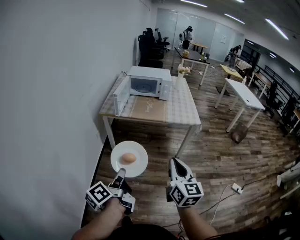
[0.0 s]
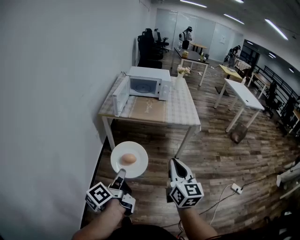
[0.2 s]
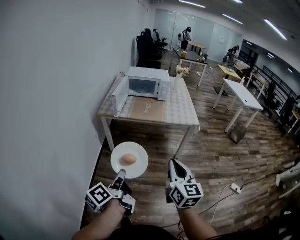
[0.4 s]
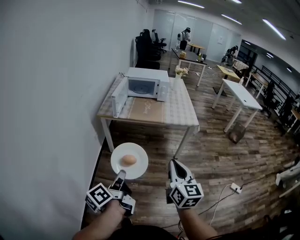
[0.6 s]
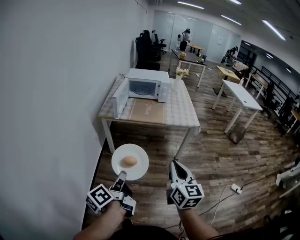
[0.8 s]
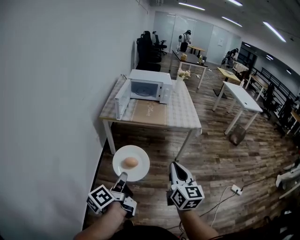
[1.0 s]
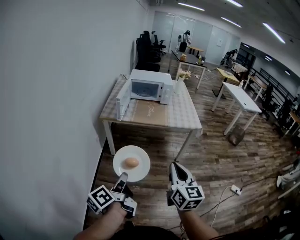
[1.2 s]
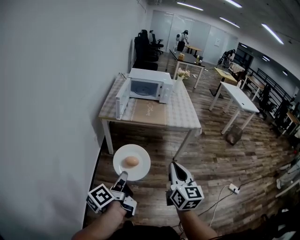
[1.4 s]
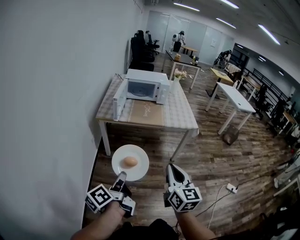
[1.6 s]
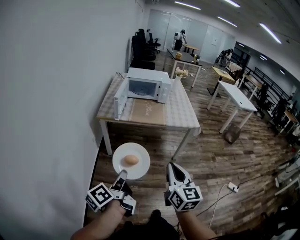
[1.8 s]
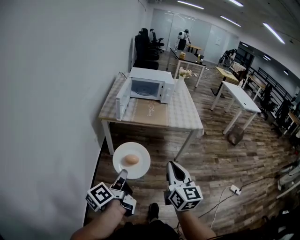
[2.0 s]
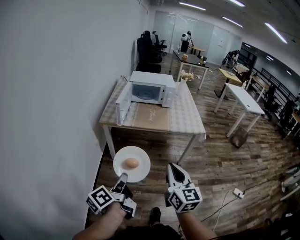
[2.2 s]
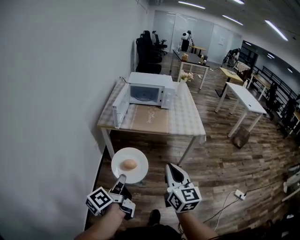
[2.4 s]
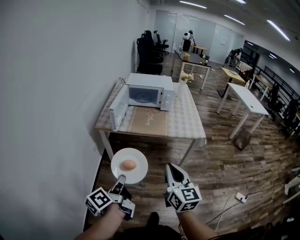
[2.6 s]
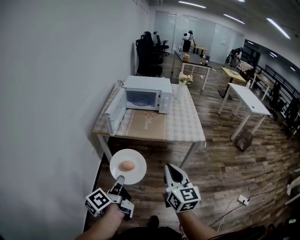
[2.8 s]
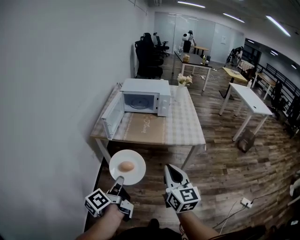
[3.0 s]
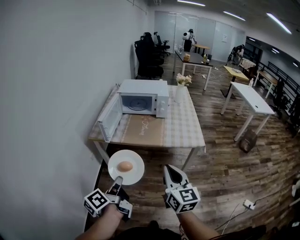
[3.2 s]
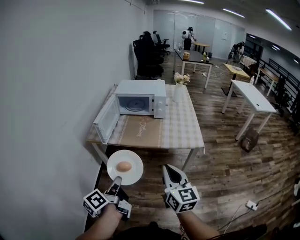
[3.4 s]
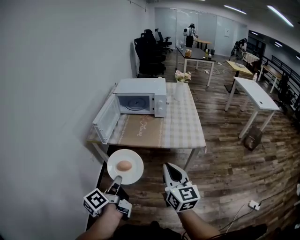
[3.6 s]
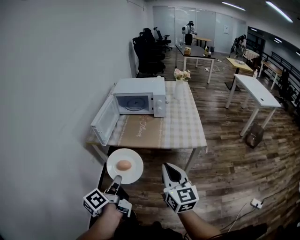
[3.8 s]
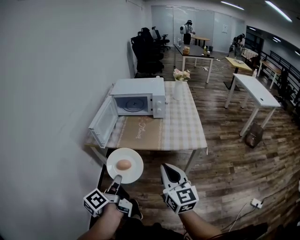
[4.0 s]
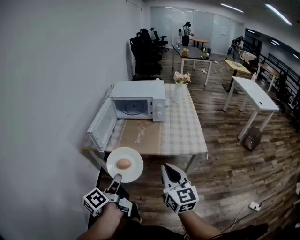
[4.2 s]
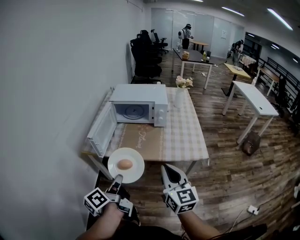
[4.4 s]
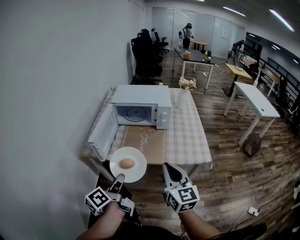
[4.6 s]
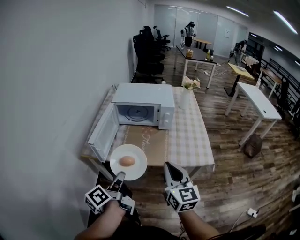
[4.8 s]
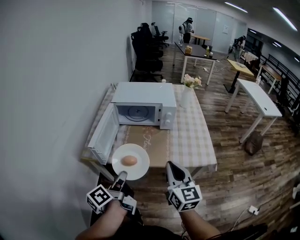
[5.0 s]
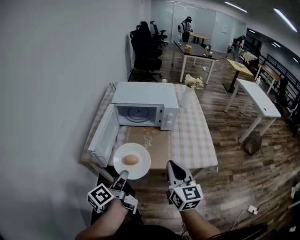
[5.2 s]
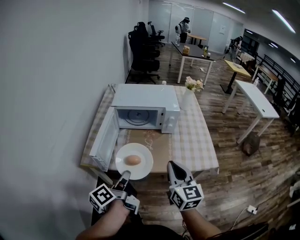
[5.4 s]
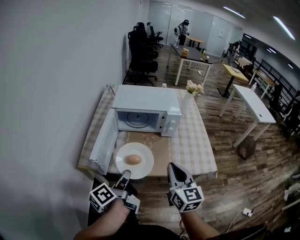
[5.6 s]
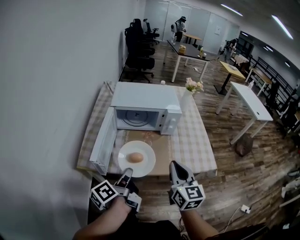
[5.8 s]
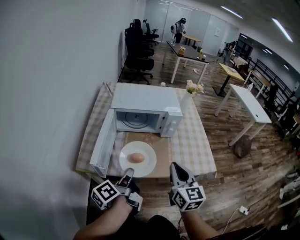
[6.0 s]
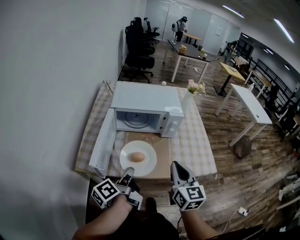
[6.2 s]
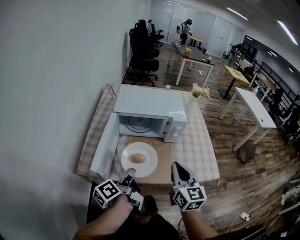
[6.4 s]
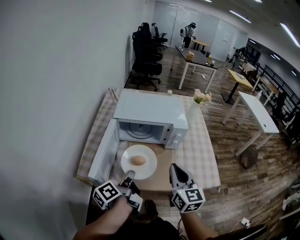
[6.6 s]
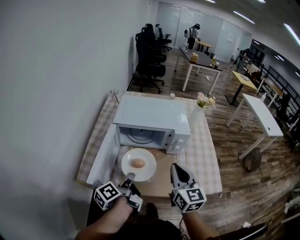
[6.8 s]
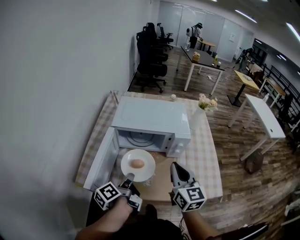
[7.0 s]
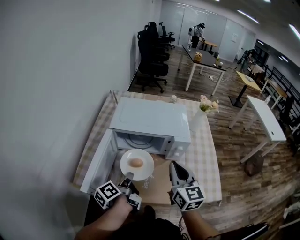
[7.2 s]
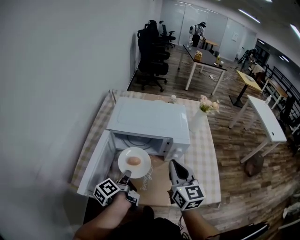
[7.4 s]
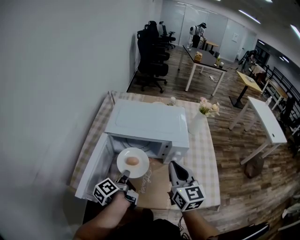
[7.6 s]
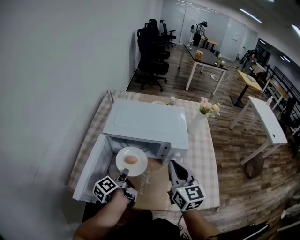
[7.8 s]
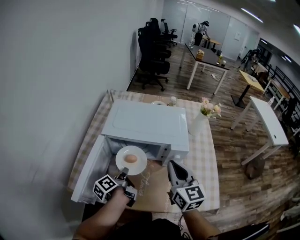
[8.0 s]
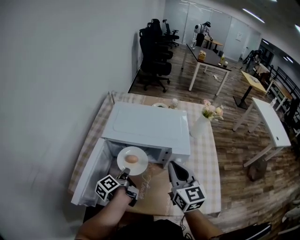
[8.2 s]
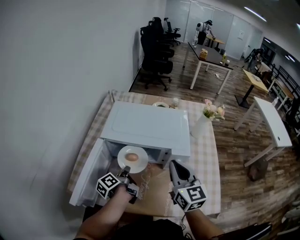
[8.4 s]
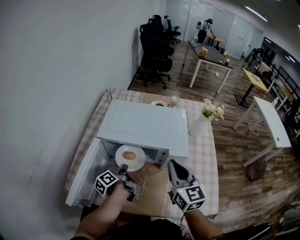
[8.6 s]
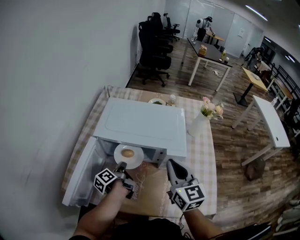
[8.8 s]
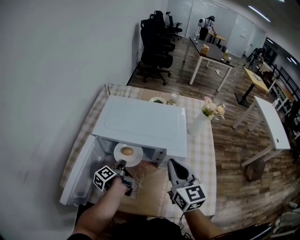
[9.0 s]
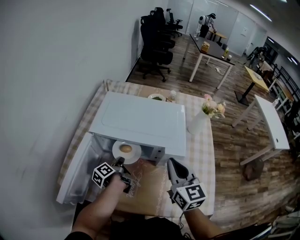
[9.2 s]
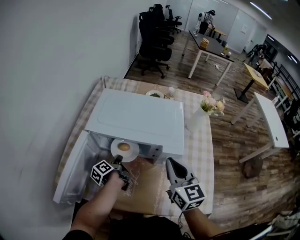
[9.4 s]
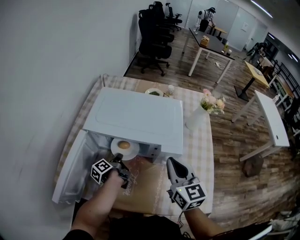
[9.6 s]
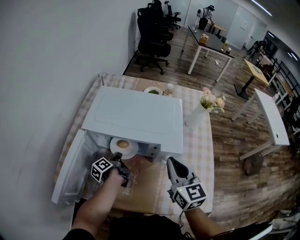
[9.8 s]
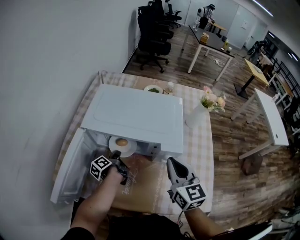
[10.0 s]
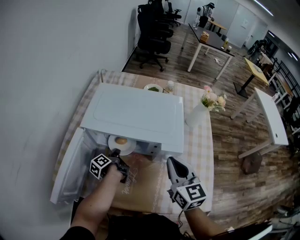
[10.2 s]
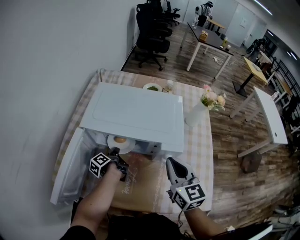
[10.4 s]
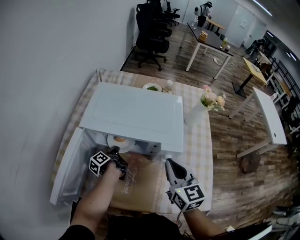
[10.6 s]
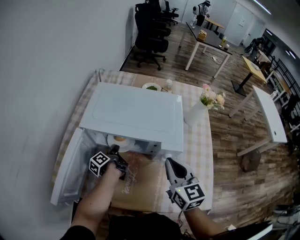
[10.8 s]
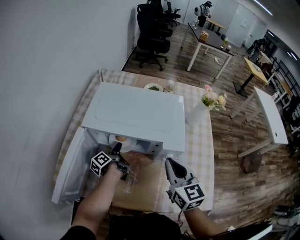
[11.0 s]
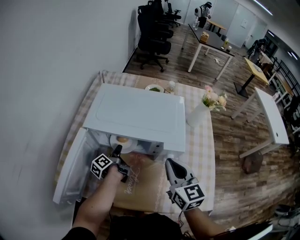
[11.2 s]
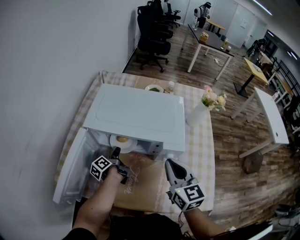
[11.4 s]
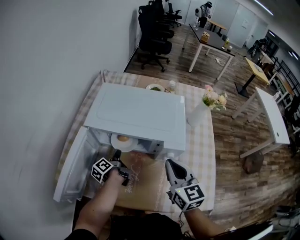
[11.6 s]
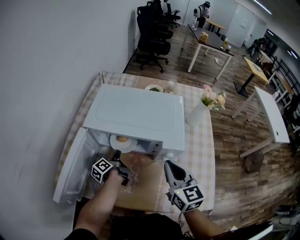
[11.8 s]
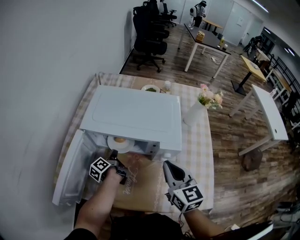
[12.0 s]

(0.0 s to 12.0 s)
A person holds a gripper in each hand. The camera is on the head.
0.0 s - 1.6 s: Both grippers travel together to the left, roughly 5 cm.
1.6 s - 3.0 s: Both grippers move forward and to the right, approximately 20 cm.
3.0 s - 4.4 s: The two grippers go some 15 cm forward.
4.4 s - 6.0 s: The left gripper goes some 20 cm forward. The right gripper travels forward and to the left by about 20 cm.
6.0 s - 7.6 s: The right gripper is displaced forward by approximately 20 cm. Meanwhile the left gripper travels forward and downward by roughly 20 cm.
7.6 s - 9.0 s: The right gripper shifts approximately 5 cm forward; the left gripper goes some 15 cm forward and downward.
9.0 s - 10.4 s: The left gripper is displaced downward by about 5 cm.
10.4 s - 12.0 s: The left gripper opens and closes again.

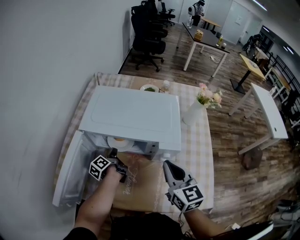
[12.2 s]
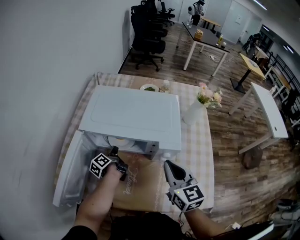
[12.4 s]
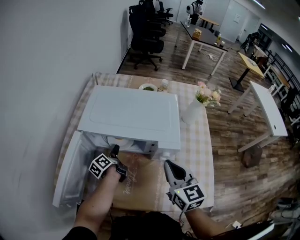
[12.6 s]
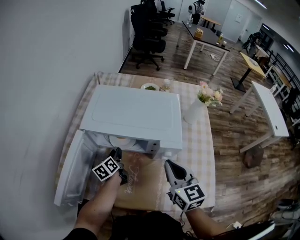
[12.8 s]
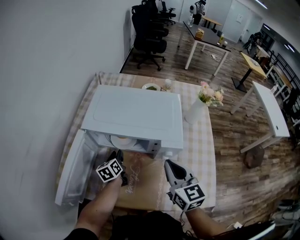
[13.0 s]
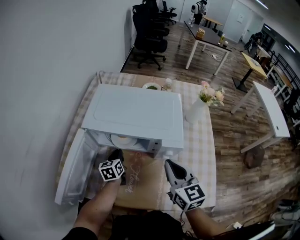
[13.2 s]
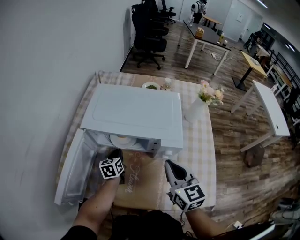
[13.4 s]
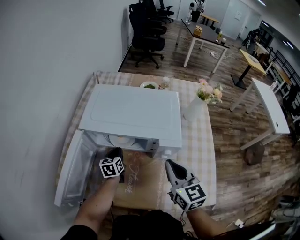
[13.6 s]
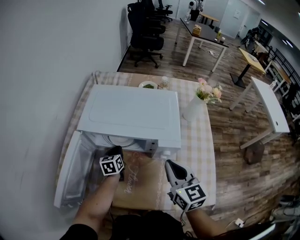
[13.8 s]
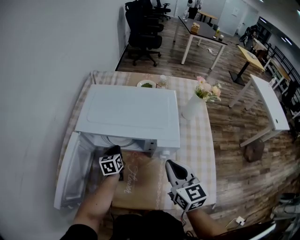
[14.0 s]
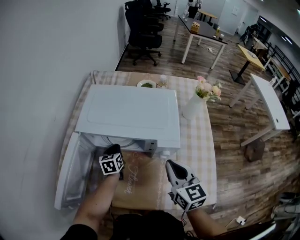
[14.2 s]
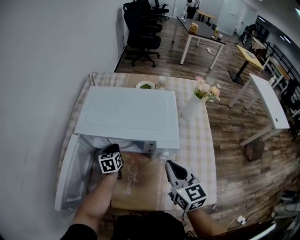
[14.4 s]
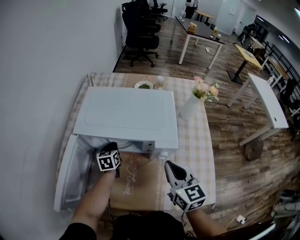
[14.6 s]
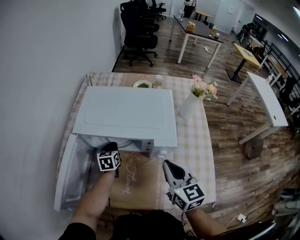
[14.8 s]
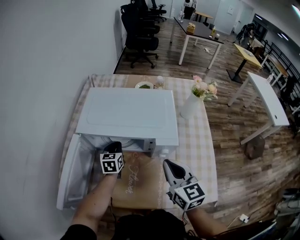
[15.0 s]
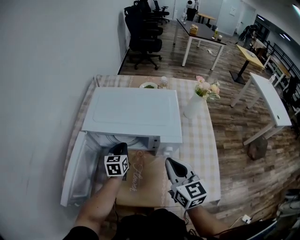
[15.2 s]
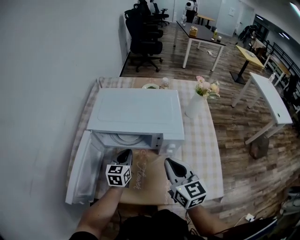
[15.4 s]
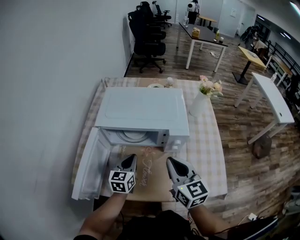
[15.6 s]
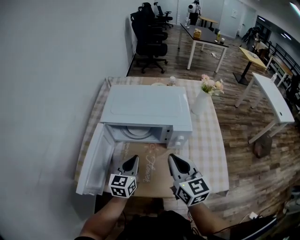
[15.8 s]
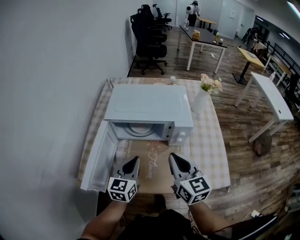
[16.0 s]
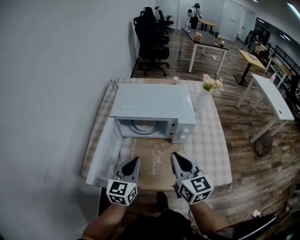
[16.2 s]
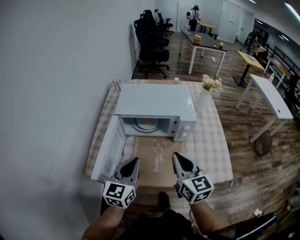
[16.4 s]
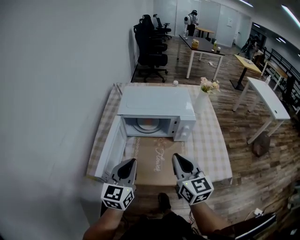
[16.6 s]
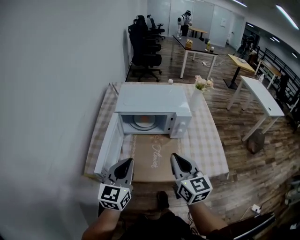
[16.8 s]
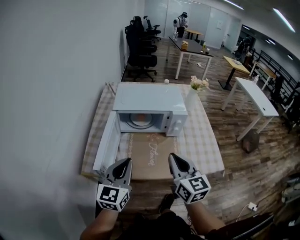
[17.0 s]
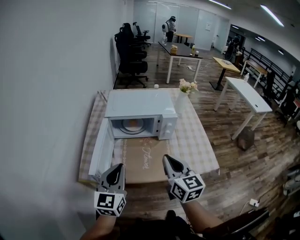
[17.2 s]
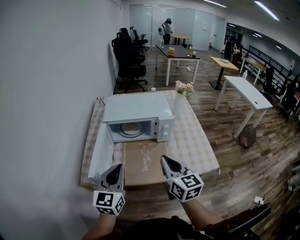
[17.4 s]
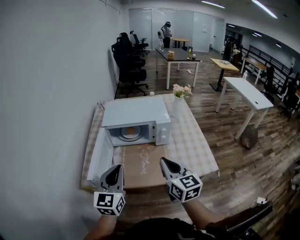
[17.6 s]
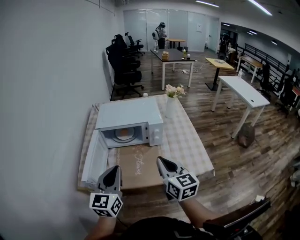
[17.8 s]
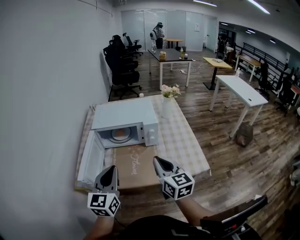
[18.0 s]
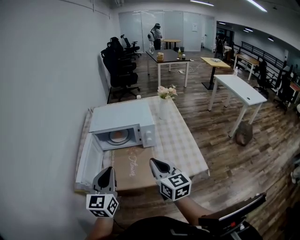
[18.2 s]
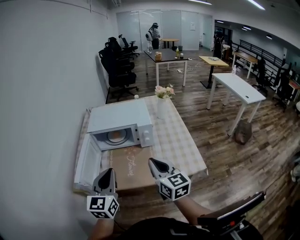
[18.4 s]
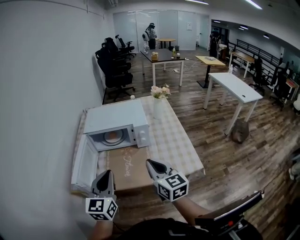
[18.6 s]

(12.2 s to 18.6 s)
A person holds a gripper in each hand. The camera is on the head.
12.2 s - 13.8 s: The left gripper rolls clockwise, seen from behind, by about 60 degrees, and opens, then closes again.
13.8 s - 15.4 s: The left gripper moves upward and backward, some 10 cm, and changes its angle by approximately 20 degrees.
15.4 s - 17.0 s: The right gripper moves backward and to the left, approximately 20 cm. Meanwhile the left gripper heads backward and upward, covering roughly 35 cm, and turns by roughly 20 degrees.
17.0 s - 18.6 s: Both grippers travel together to the right, about 10 cm.

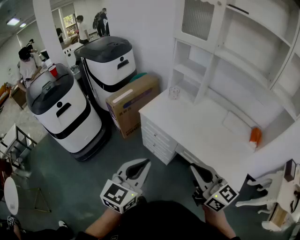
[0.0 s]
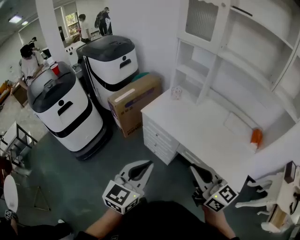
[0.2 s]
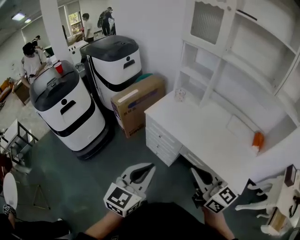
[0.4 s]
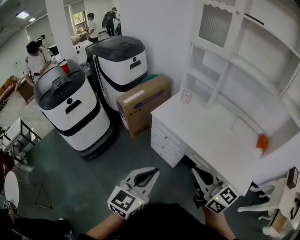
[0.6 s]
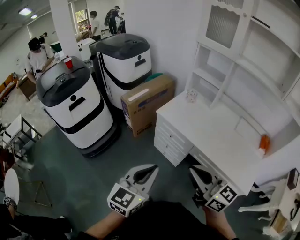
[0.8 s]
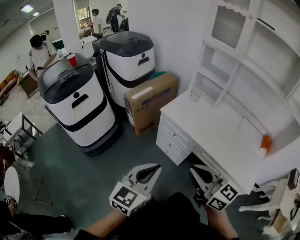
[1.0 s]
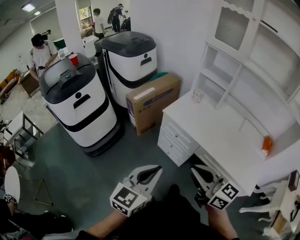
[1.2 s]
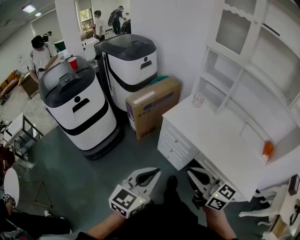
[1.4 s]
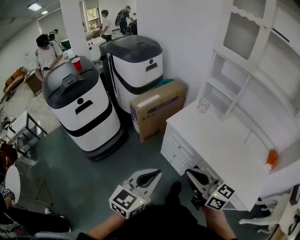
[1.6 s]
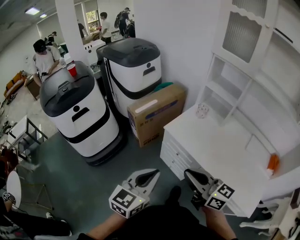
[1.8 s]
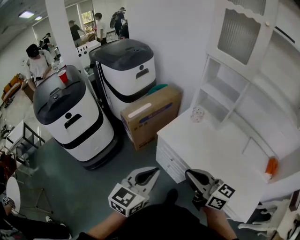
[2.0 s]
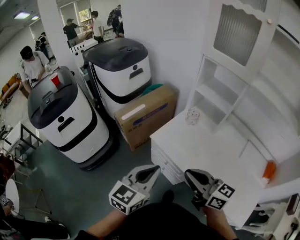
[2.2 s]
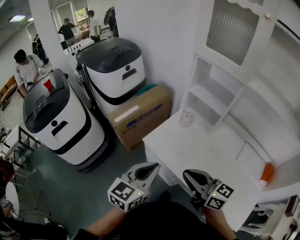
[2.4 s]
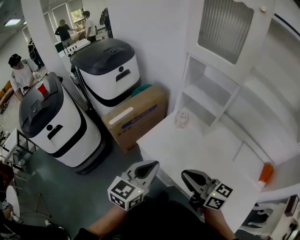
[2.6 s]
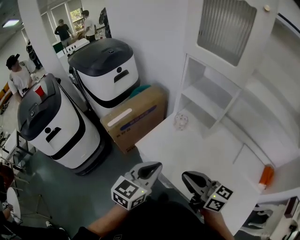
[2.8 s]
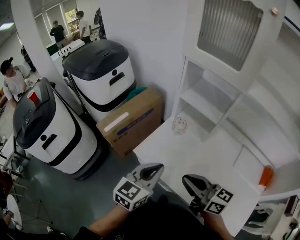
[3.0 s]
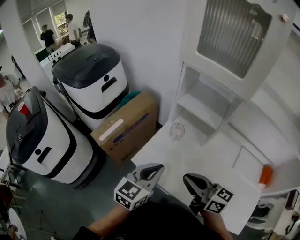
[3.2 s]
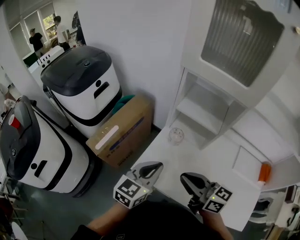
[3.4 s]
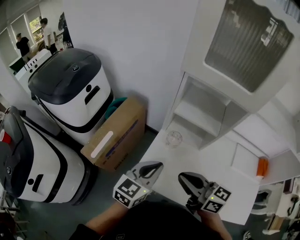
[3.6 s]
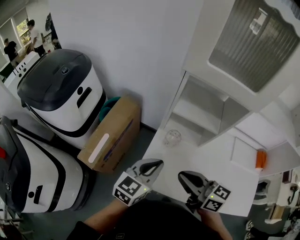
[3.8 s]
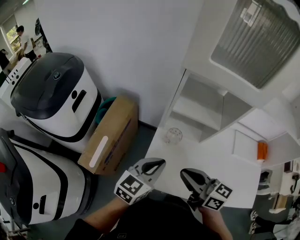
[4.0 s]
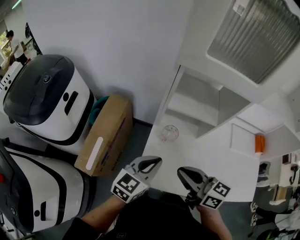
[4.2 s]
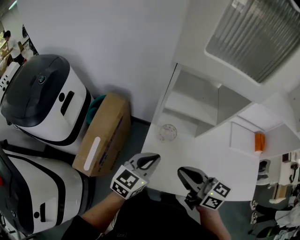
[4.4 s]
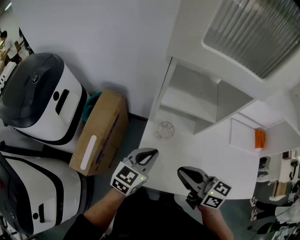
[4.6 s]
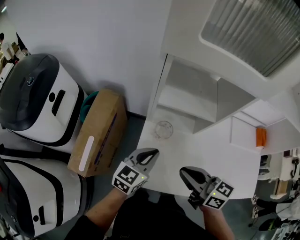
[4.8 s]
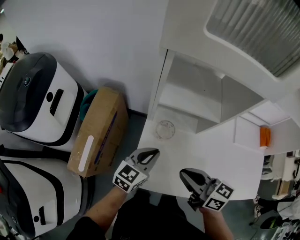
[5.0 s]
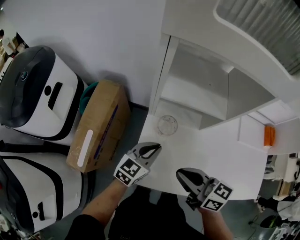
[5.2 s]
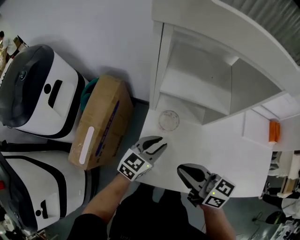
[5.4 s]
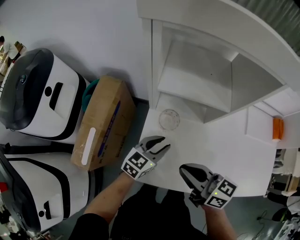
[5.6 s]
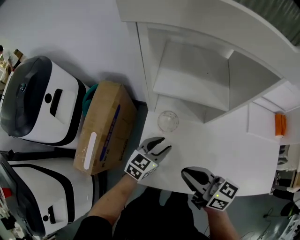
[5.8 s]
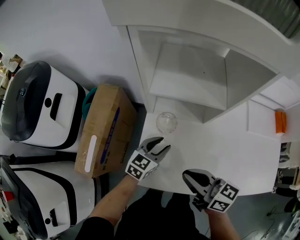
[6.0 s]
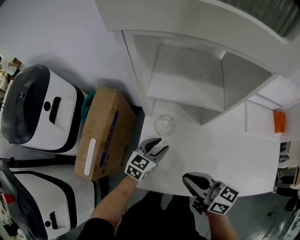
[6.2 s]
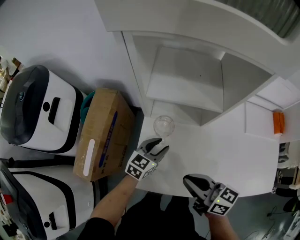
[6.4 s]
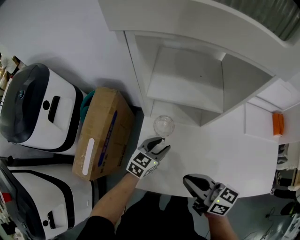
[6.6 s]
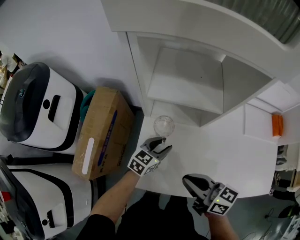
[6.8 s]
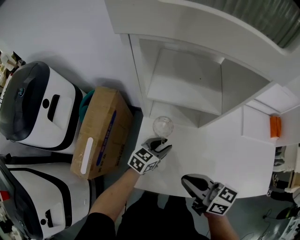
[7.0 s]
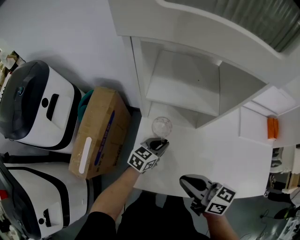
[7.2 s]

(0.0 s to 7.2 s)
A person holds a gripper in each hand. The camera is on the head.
0.0 s - 1.4 s: The grippers both shift to the left by some 10 cm.
1.4 s - 2.8 s: The grippers both shift forward and to the right by roughly 35 cm.
2.8 s - 4.4 s: The left gripper changes place by roughly 25 cm, and turns by roughly 40 degrees. Meanwhile the right gripper changes place by roughly 20 cm, and swivels roughly 30 degrees.
4.4 s - 5.8 s: The left gripper is displaced downward by roughly 15 cm, and opens up. The right gripper is displaced downward by roughly 10 cm.
5.8 s - 7.2 s: The left gripper changes place by roughly 5 cm, and closes up.
